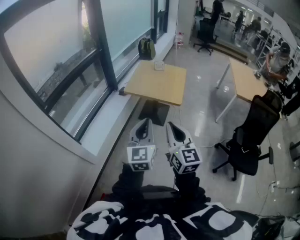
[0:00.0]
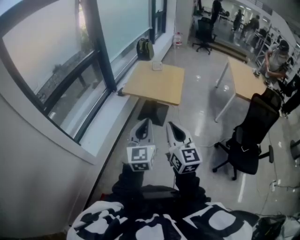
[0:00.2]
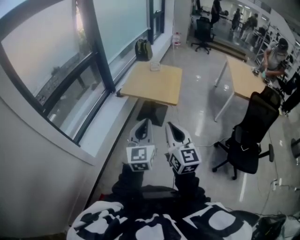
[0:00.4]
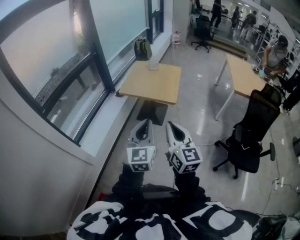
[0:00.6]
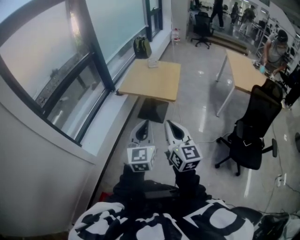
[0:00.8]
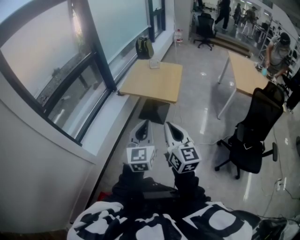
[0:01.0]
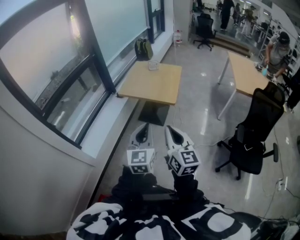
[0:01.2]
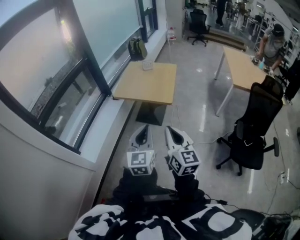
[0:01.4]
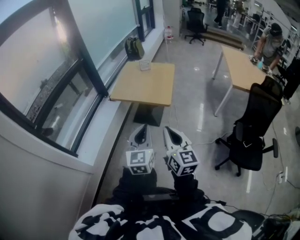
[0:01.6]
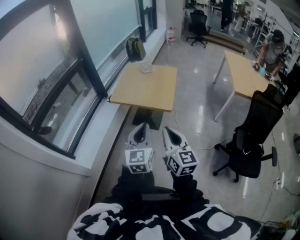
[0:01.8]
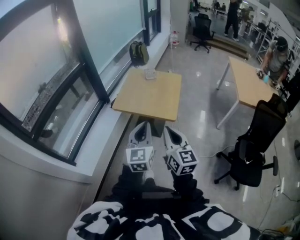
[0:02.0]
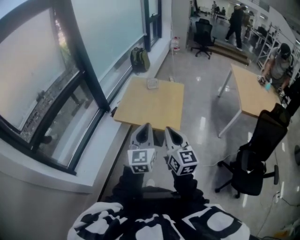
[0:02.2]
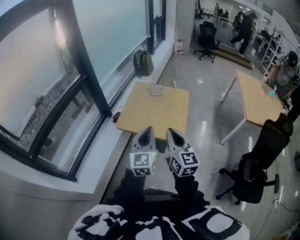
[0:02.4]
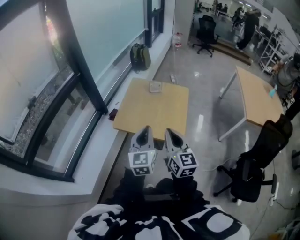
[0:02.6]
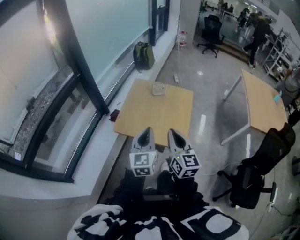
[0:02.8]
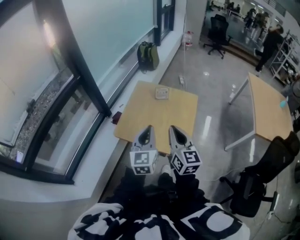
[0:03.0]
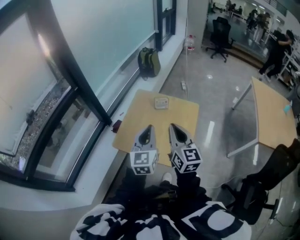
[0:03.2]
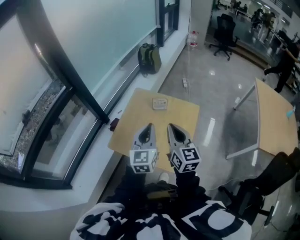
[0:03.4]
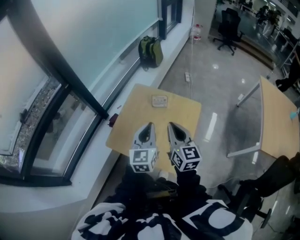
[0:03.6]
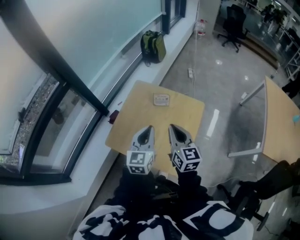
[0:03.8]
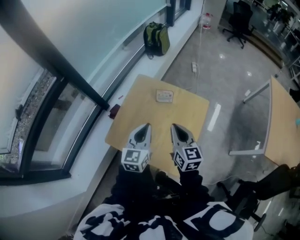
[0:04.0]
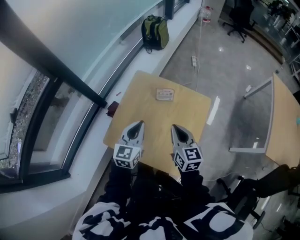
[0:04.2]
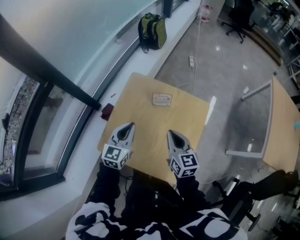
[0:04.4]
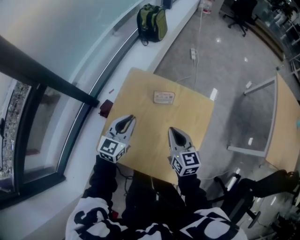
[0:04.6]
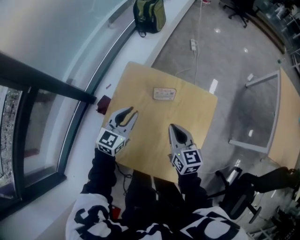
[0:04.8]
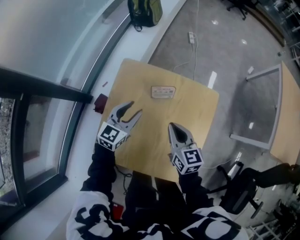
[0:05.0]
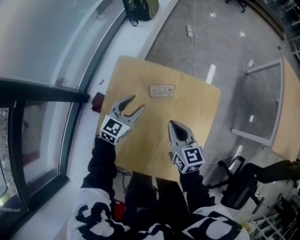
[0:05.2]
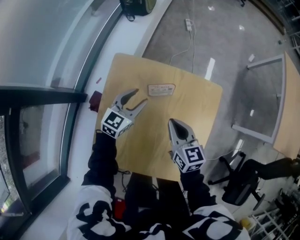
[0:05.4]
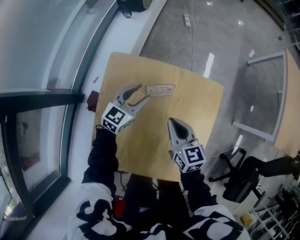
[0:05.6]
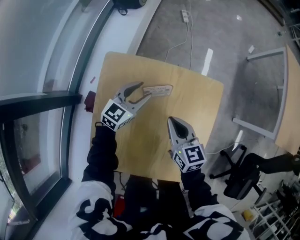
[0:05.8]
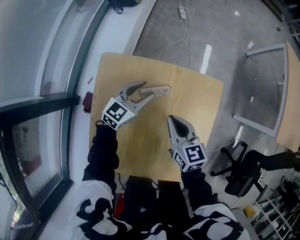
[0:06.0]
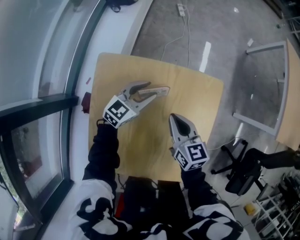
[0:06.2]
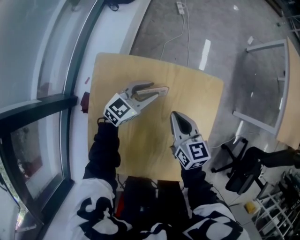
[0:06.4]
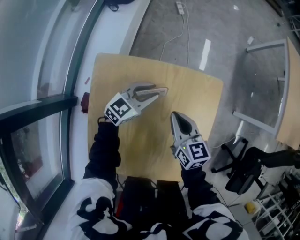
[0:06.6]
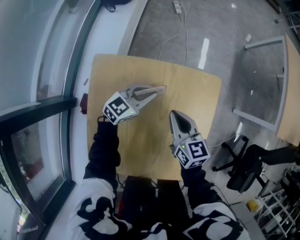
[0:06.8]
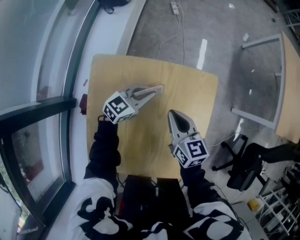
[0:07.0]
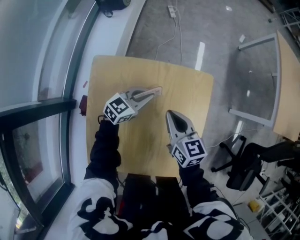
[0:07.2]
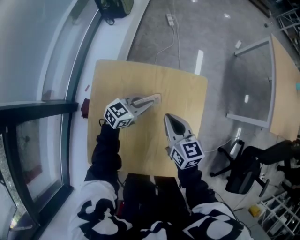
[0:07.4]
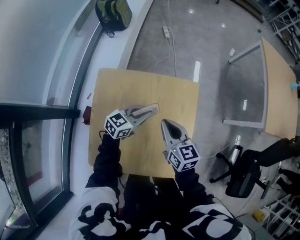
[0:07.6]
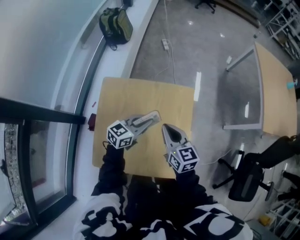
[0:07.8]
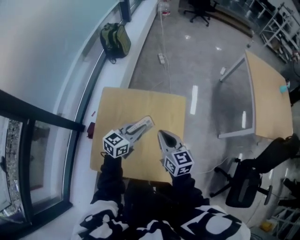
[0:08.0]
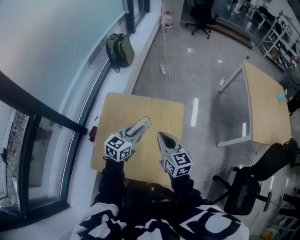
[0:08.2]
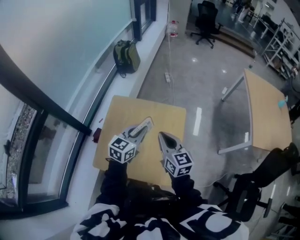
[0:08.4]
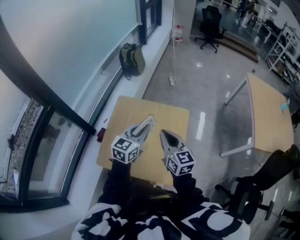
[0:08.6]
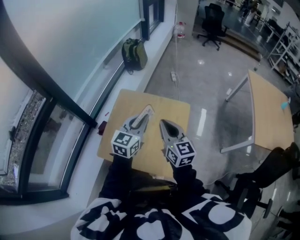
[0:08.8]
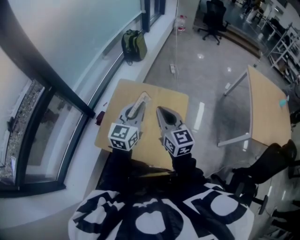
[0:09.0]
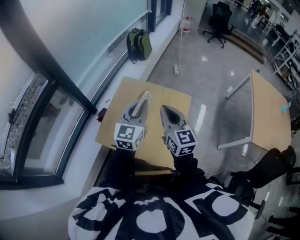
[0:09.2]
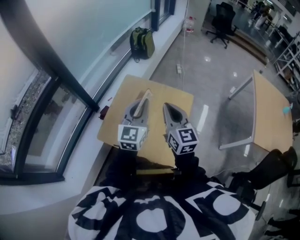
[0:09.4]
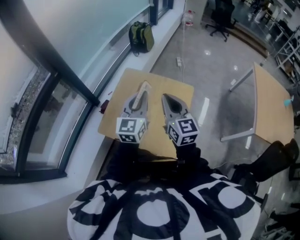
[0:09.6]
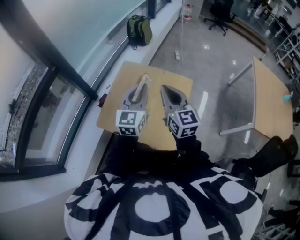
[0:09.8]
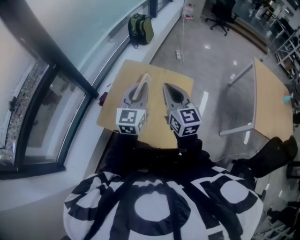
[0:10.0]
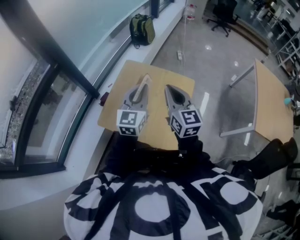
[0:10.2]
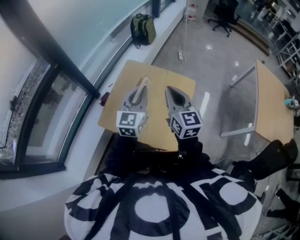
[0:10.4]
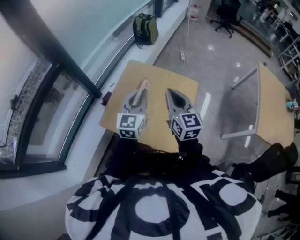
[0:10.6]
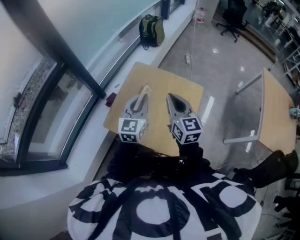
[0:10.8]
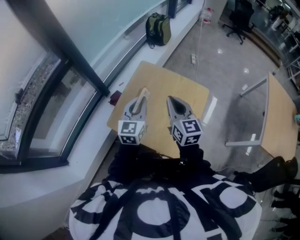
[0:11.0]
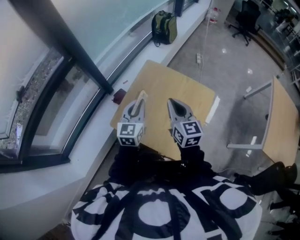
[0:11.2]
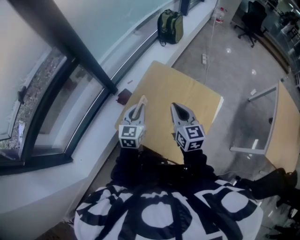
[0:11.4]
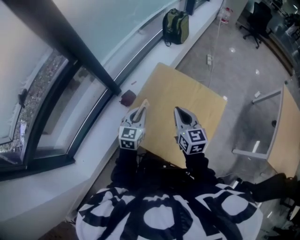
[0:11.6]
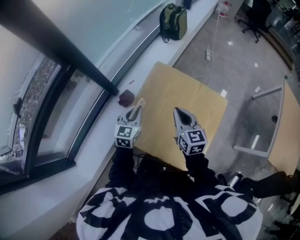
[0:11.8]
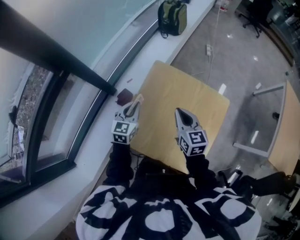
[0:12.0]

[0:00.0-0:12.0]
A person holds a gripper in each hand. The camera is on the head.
0:00.0 to 0:01.6: Both grippers travel together to the right and forward, some 10 cm.
0:01.6 to 0:03.0: The pair of grippers is taken forward, about 50 cm.
0:03.0 to 0:04.4: Both grippers travel together forward and downward, approximately 30 cm.
0:04.4 to 0:06.0: The right gripper heads downward and forward, covering roughly 20 cm, while the left gripper goes approximately 30 cm forward and downward, changes its angle by some 40 degrees, and opens up.
0:06.0 to 0:07.6: The left gripper heads to the right, backward and upward, covering some 15 cm, and closes up. The right gripper shifts approximately 10 cm upward.
0:07.6 to 0:09.0: Both grippers travel together upward, roughly 25 cm. The left gripper swivels approximately 50 degrees; the right gripper turns by some 30 degrees.
0:09.0 to 0:10.4: There are only small adjustments of the grippers.
0:10.4 to 0:12.0: The right gripper travels forward, downward and to the left by about 25 cm, and swivels roughly 20 degrees. The left gripper travels to the left, downward and forward by some 30 cm, and rotates about 20 degrees.

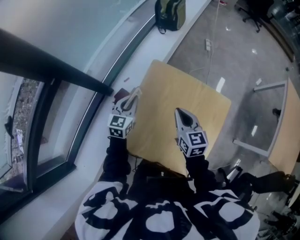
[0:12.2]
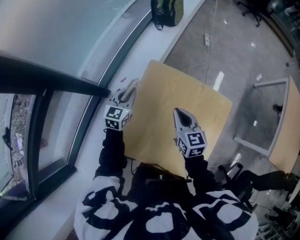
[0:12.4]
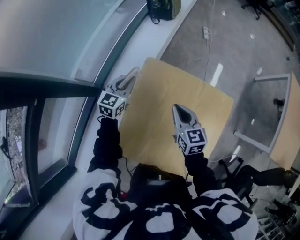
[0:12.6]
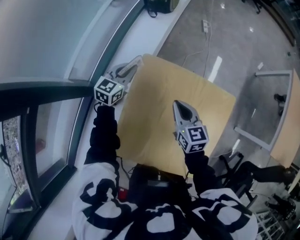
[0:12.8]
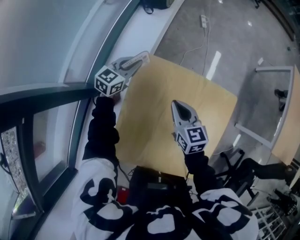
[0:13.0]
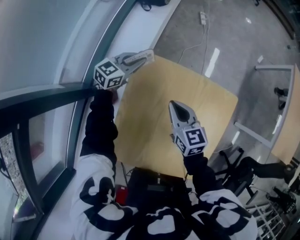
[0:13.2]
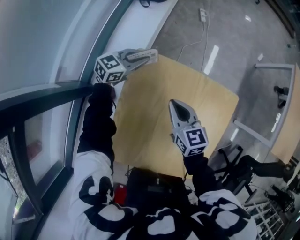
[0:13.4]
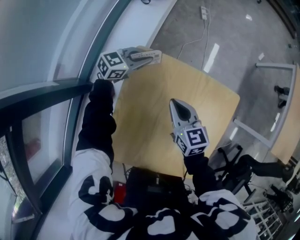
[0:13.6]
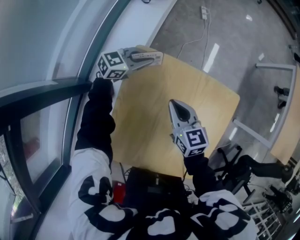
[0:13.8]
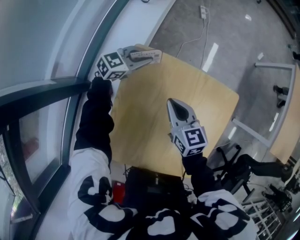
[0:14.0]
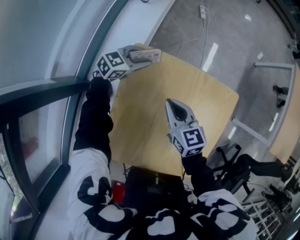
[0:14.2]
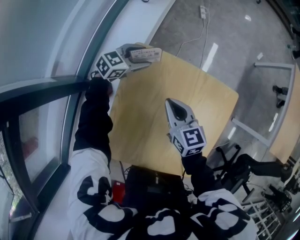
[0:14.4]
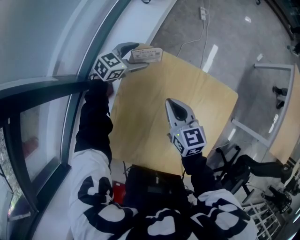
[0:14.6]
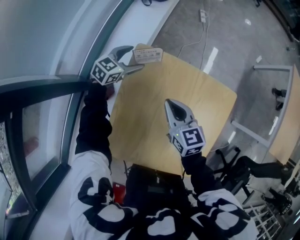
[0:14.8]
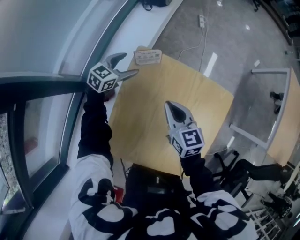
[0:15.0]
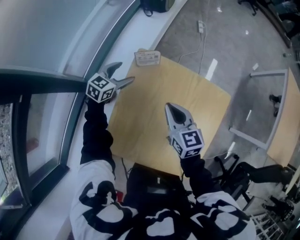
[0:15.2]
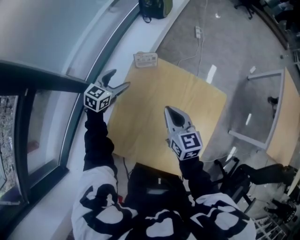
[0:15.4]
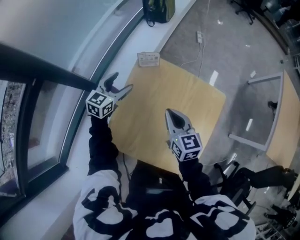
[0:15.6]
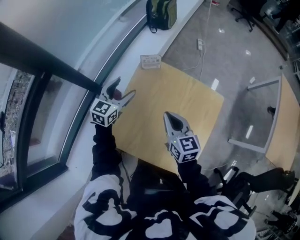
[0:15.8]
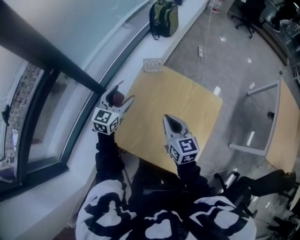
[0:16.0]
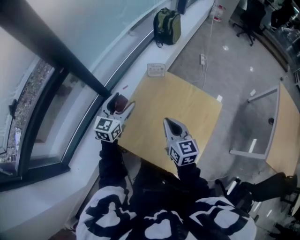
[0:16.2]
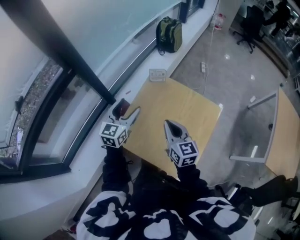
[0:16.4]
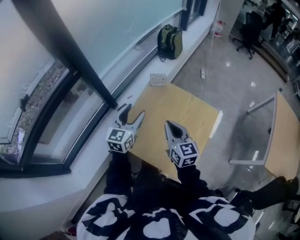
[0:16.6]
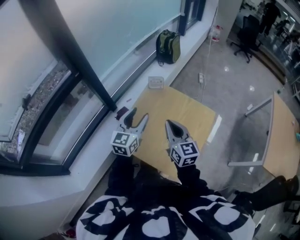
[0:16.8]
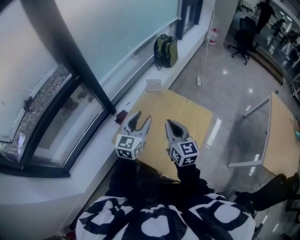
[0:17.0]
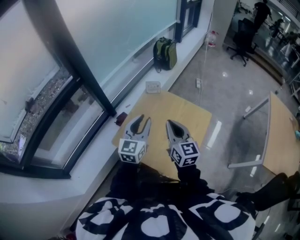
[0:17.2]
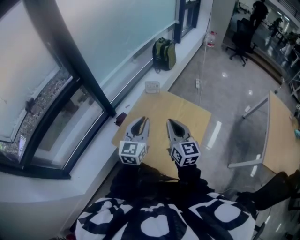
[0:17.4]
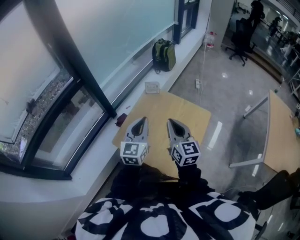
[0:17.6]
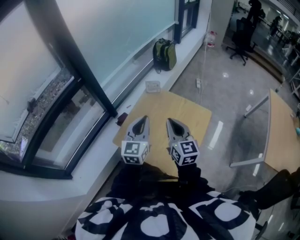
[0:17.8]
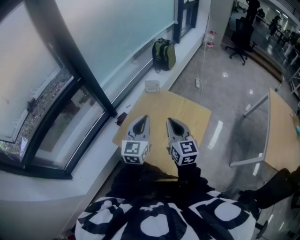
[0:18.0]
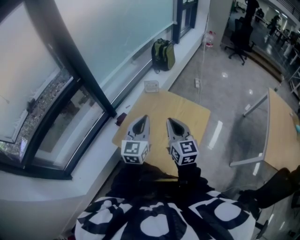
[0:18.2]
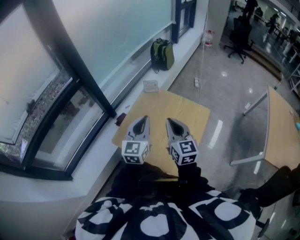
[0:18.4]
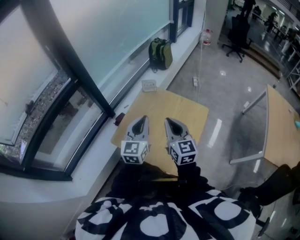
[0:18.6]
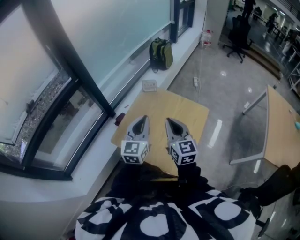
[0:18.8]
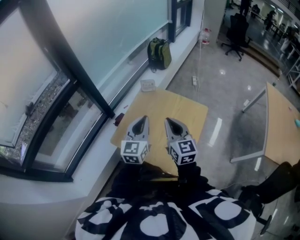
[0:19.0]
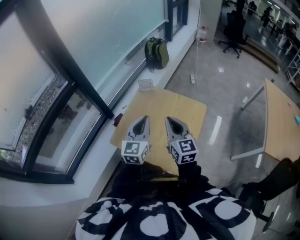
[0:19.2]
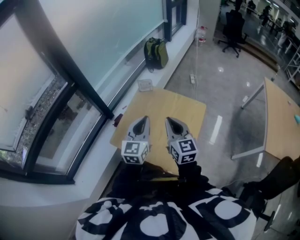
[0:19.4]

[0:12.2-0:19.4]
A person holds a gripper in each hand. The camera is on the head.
0:12.2 to 0:13.6: The right gripper moves downward, approximately 10 cm. Meanwhile the left gripper changes place by about 25 cm, and swivels approximately 50 degrees.
0:13.6 to 0:15.0: The left gripper is displaced to the left by roughly 5 cm, rotates some 20 degrees, and opens up.
0:15.0 to 0:16.6: The left gripper moves backward and upward, some 40 cm, and turns by some 40 degrees; the right gripper travels backward and upward by some 25 cm.
0:16.6 to 0:18.0: The right gripper shifts some 10 cm upward and backward. The left gripper shifts roughly 15 cm backward, to the right and upward, and closes its fingers.
0:18.0 to 0:19.4: The grippers stay close to where they were, moving slightly.

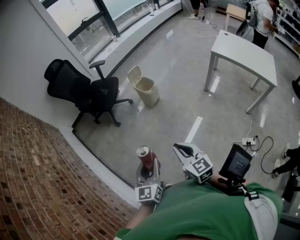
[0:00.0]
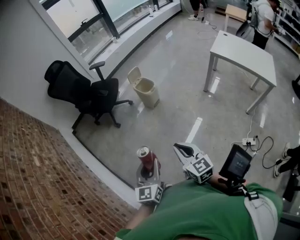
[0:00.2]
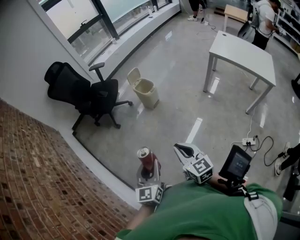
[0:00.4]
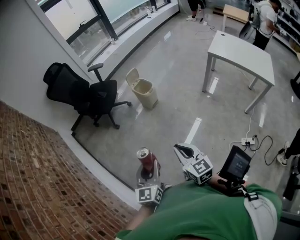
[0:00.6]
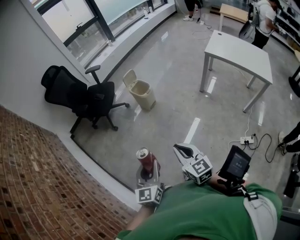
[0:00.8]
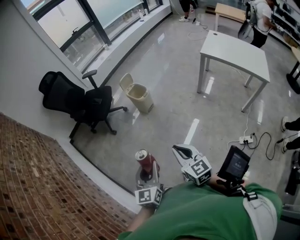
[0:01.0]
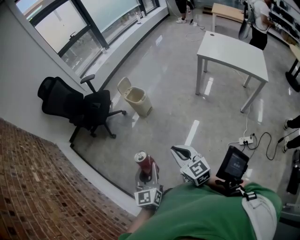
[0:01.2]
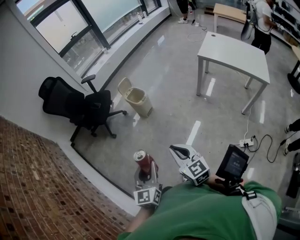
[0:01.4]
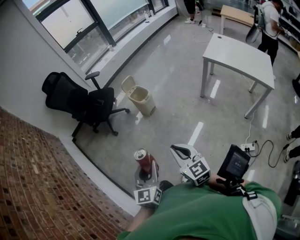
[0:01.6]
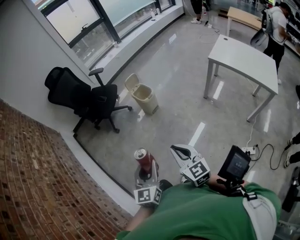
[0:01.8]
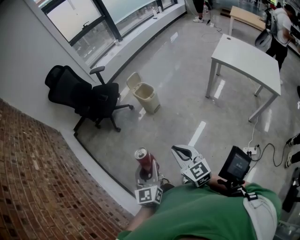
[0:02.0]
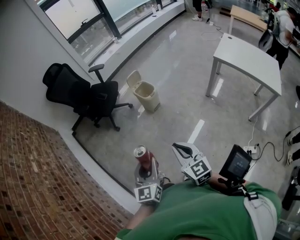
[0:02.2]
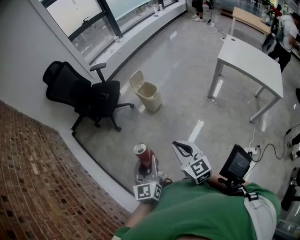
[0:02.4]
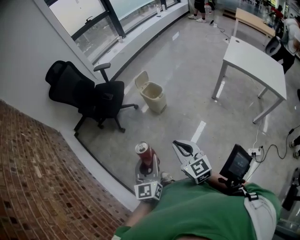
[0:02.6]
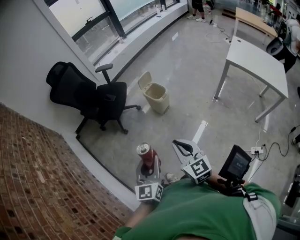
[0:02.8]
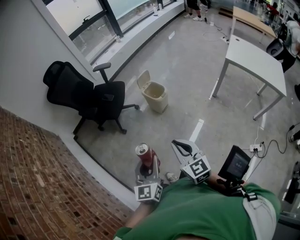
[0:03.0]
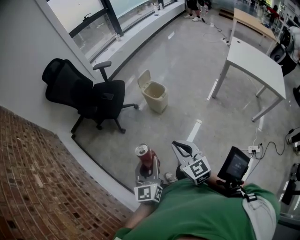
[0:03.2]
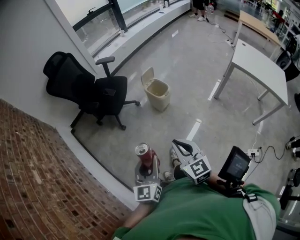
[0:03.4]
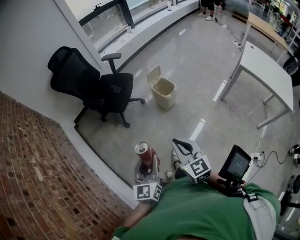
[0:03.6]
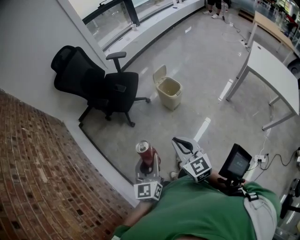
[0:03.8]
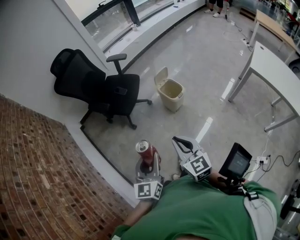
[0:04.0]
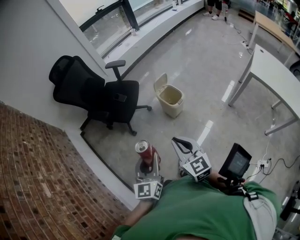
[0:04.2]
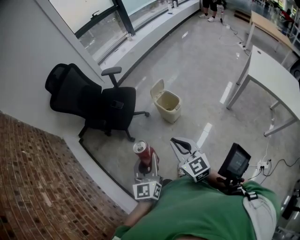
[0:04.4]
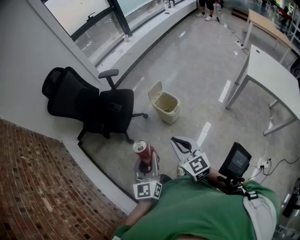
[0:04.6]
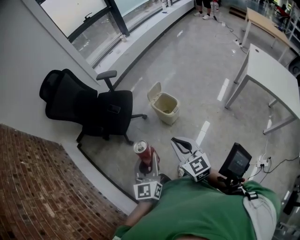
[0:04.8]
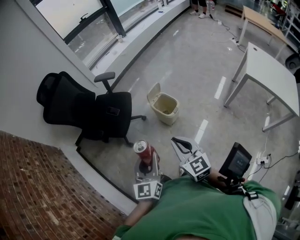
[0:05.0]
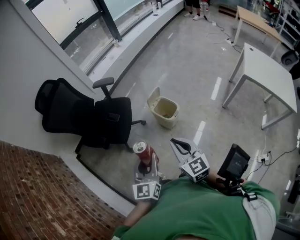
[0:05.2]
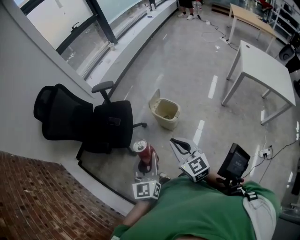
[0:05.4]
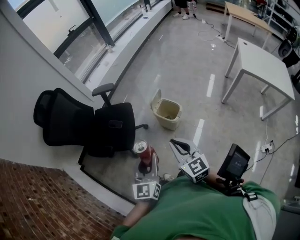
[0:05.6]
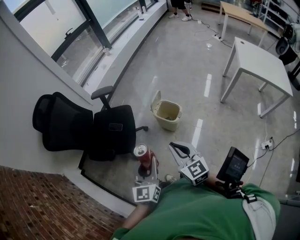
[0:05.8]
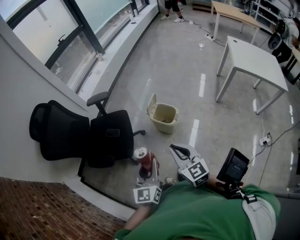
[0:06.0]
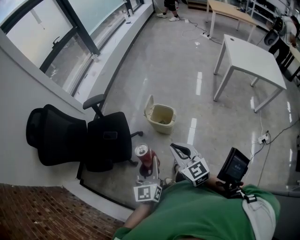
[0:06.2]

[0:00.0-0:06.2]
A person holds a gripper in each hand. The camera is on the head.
0:00.0 to 0:01.6: Both grippers move to the right, about 10 cm.
0:01.6 to 0:03.2: The two grippers go some 25 cm to the left and forward.
0:03.2 to 0:04.6: The two grippers go some 20 cm forward.
0:04.6 to 0:06.2: The grippers both shift forward and to the left by about 15 cm. The left gripper turns by about 20 degrees; the right gripper changes its angle by approximately 20 degrees.
